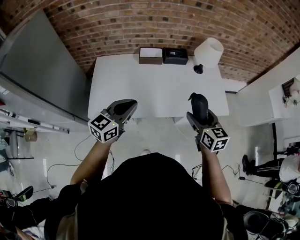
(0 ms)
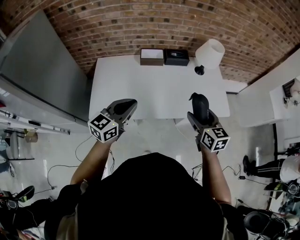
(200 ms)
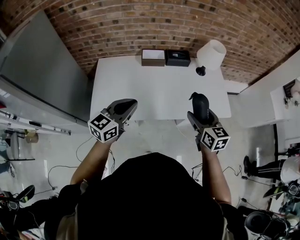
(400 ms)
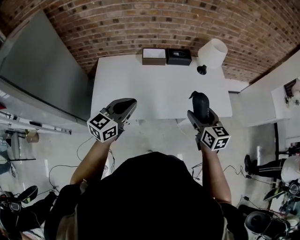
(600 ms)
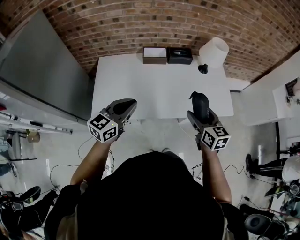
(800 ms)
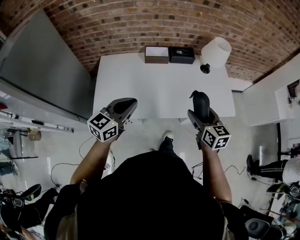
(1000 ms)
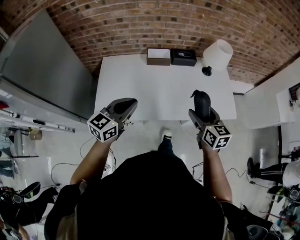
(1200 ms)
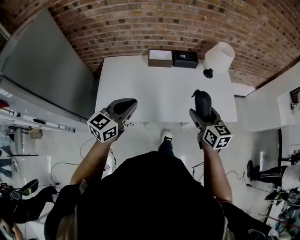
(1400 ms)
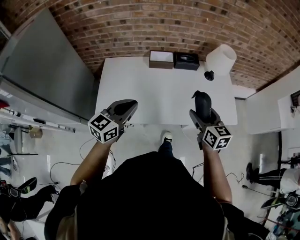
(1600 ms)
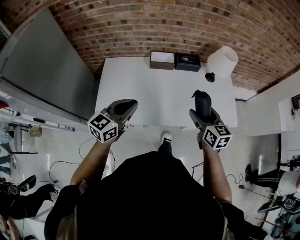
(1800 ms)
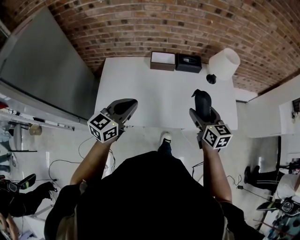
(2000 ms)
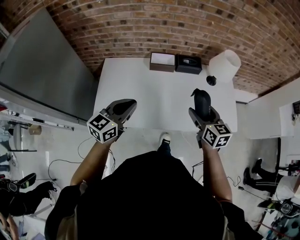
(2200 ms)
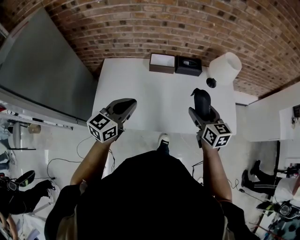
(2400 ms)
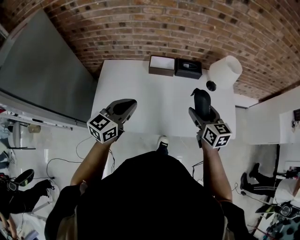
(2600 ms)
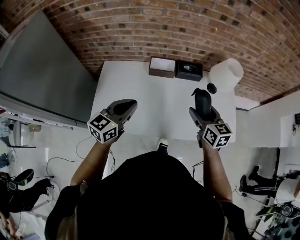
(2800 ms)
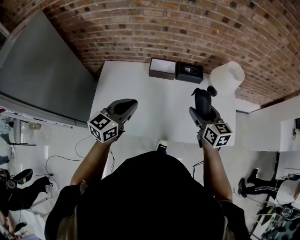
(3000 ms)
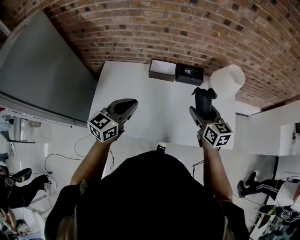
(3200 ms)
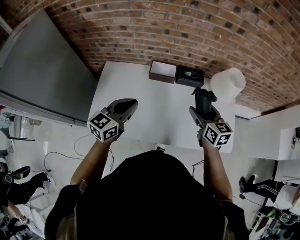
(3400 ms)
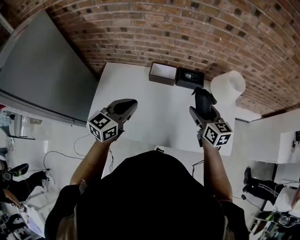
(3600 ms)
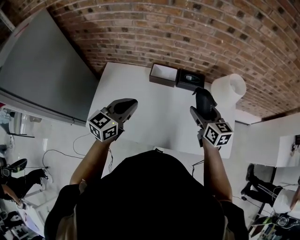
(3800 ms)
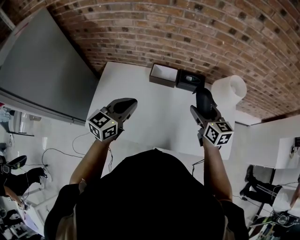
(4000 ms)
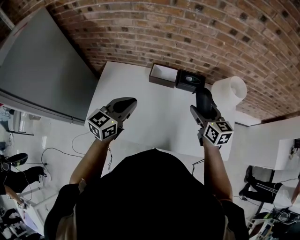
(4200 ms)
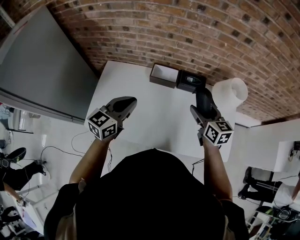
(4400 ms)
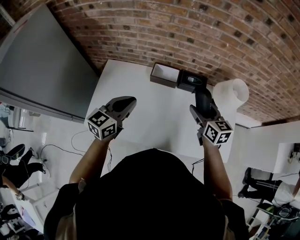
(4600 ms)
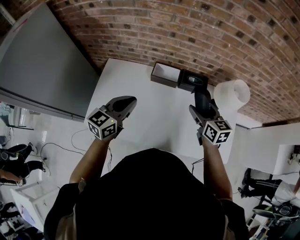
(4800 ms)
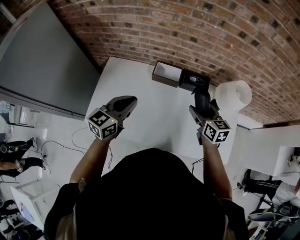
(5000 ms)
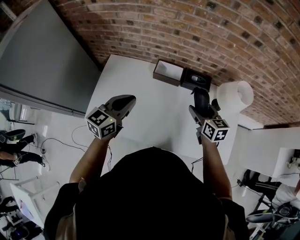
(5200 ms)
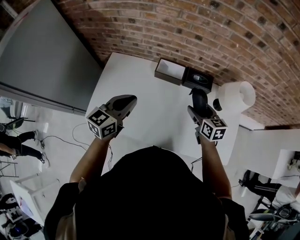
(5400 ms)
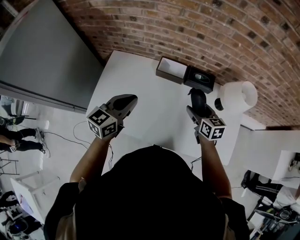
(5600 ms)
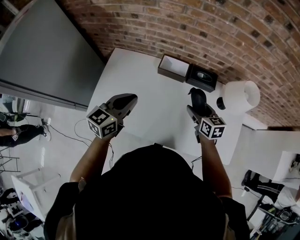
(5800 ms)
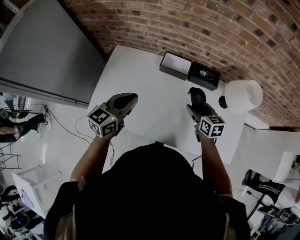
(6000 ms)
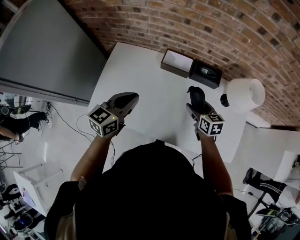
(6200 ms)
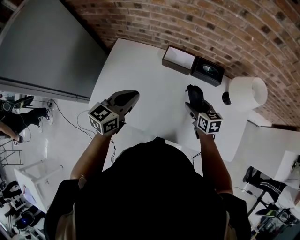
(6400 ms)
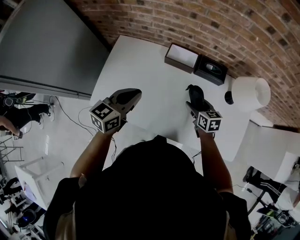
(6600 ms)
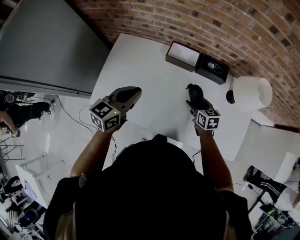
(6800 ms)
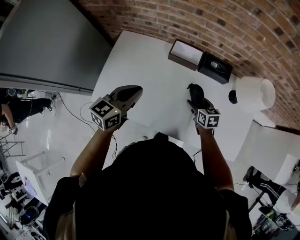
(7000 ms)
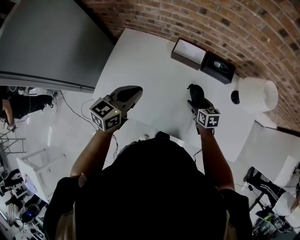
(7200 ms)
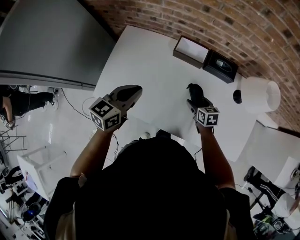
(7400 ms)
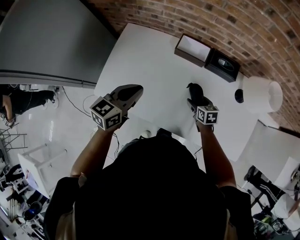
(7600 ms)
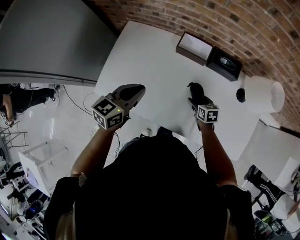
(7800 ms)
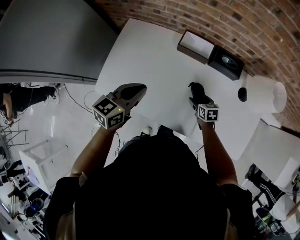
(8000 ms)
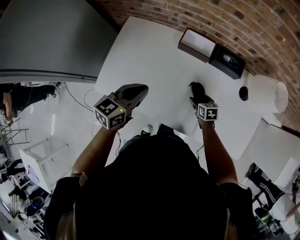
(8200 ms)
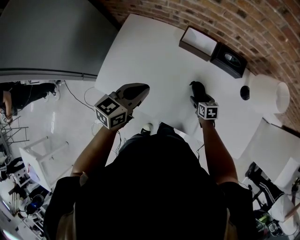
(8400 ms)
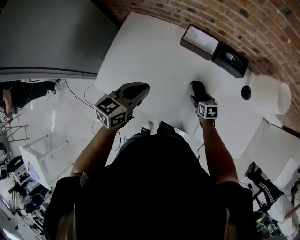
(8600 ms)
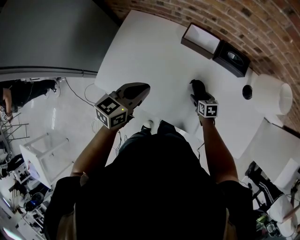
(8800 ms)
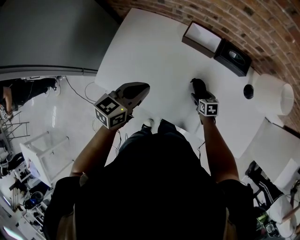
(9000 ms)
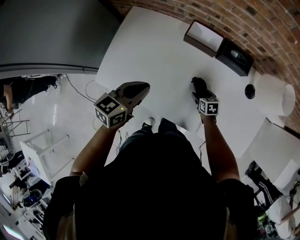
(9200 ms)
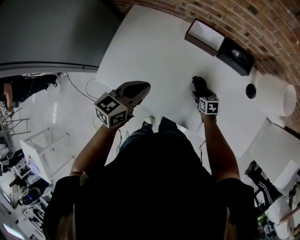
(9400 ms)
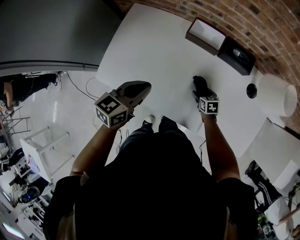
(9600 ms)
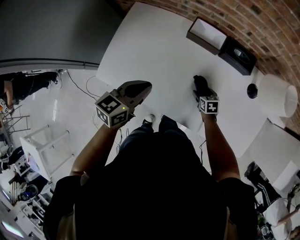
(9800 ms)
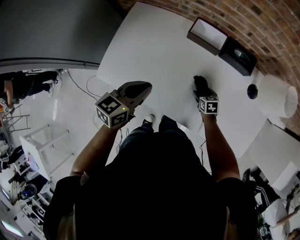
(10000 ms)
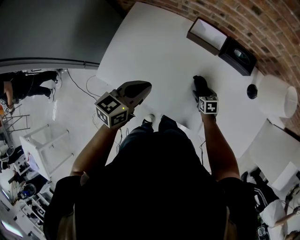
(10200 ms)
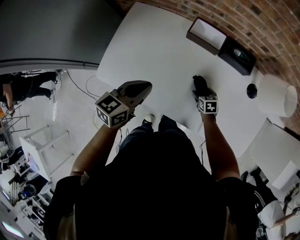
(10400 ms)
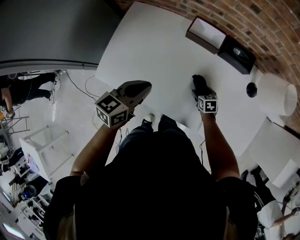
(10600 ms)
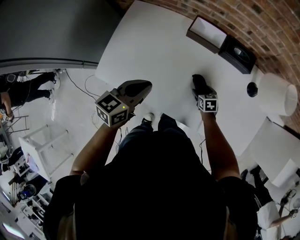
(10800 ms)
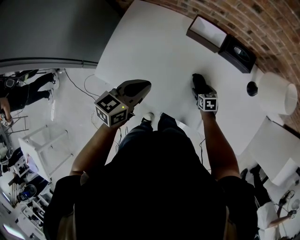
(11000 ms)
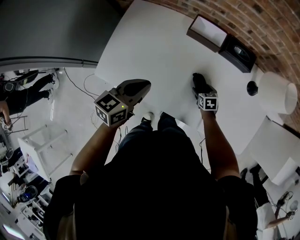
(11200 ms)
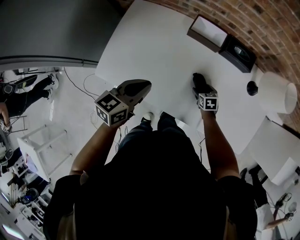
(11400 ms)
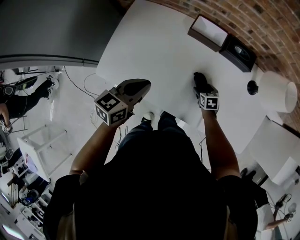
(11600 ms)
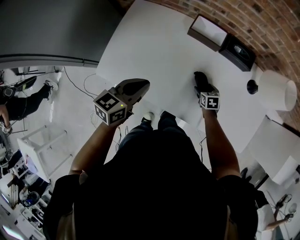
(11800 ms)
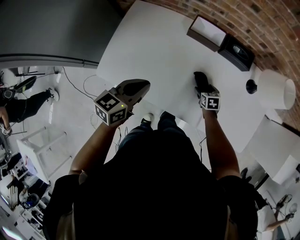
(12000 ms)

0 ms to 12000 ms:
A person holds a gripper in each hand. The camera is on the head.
0 ms to 1600 ms: The right gripper goes roughly 5 cm forward, while the left gripper ends up roughly 5 cm from where it was.
1600 ms to 3000 ms: The two grippers go about 15 cm forward.
3000 ms to 4400 ms: Both grippers move forward, roughly 10 cm.
4400 ms to 6000 ms: The right gripper heads downward, covering some 15 cm.
6000 ms to 7600 ms: The right gripper is displaced downward by roughly 15 cm, while the left gripper moves downward, roughly 5 cm.
7600 ms to 9000 ms: The right gripper goes about 10 cm downward.
9000 ms to 12000 ms: There are only small adjustments of the grippers.

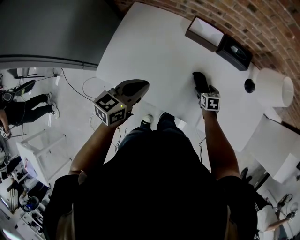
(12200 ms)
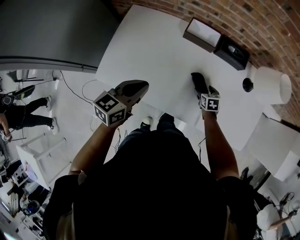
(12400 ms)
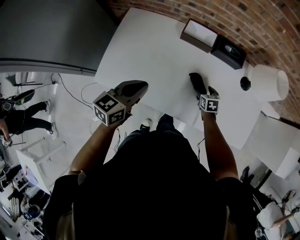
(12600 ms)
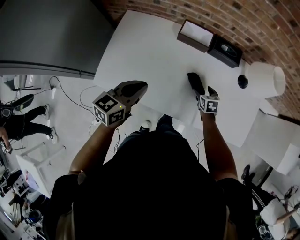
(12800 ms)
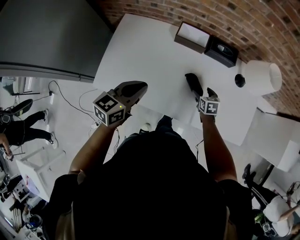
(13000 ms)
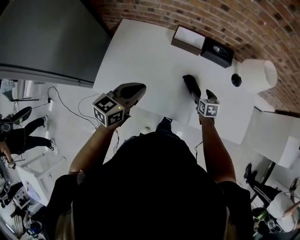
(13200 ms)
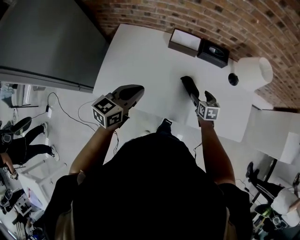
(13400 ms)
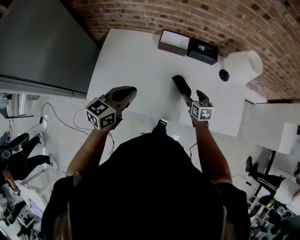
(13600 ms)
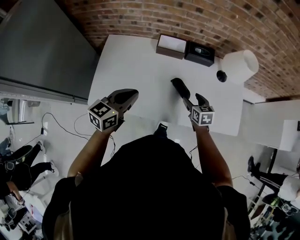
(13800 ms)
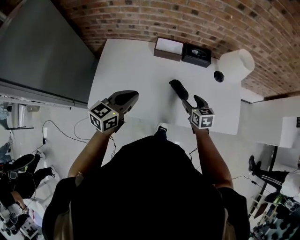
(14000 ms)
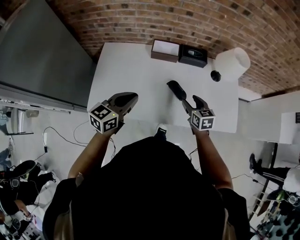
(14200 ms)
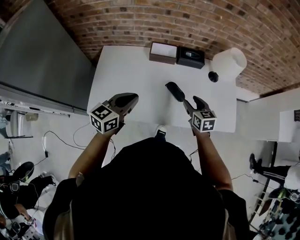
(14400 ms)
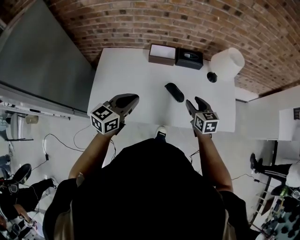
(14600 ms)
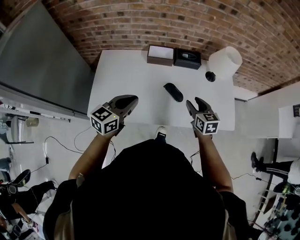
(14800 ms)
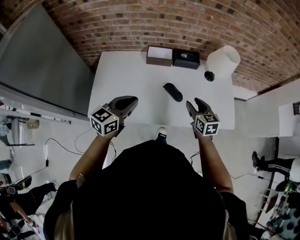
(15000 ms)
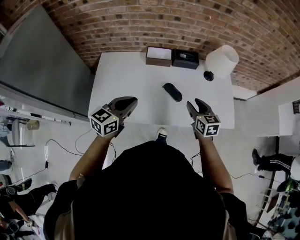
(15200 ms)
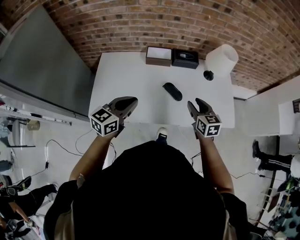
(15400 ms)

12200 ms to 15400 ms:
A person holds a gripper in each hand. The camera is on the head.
12200 ms to 13800 ms: The right gripper shifts approximately 20 cm upward and backward, and changes its angle by some 20 degrees; the left gripper is displaced upward by some 5 cm.
13800 ms to 15400 ms: The right gripper heads upward and backward, covering approximately 15 cm, while the left gripper is displaced backward by approximately 5 cm.

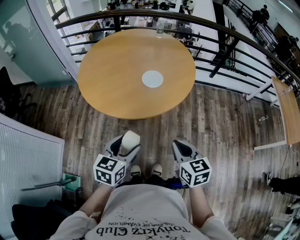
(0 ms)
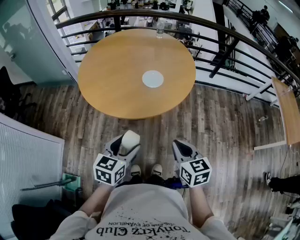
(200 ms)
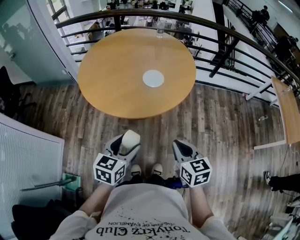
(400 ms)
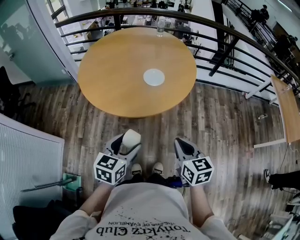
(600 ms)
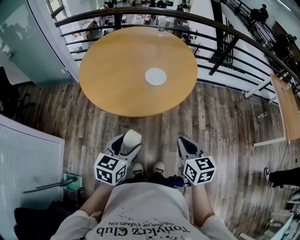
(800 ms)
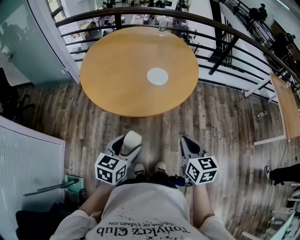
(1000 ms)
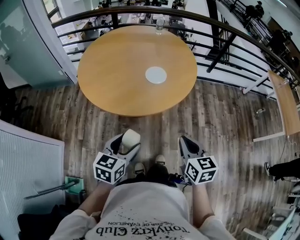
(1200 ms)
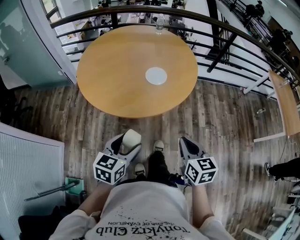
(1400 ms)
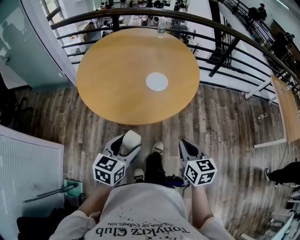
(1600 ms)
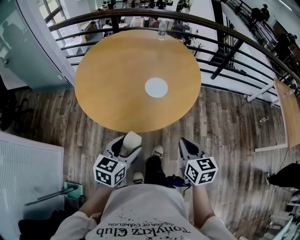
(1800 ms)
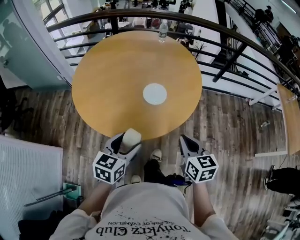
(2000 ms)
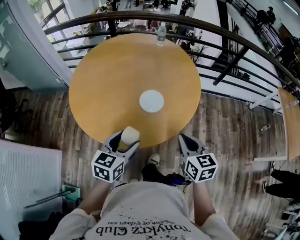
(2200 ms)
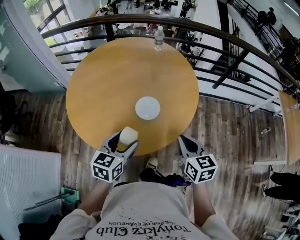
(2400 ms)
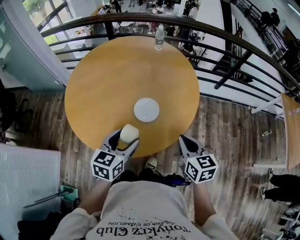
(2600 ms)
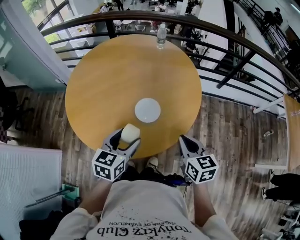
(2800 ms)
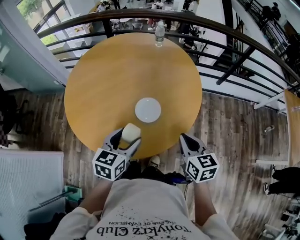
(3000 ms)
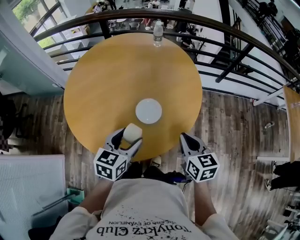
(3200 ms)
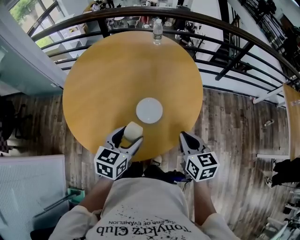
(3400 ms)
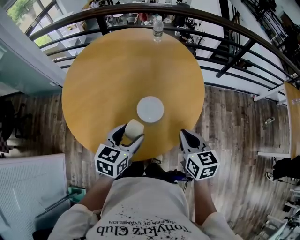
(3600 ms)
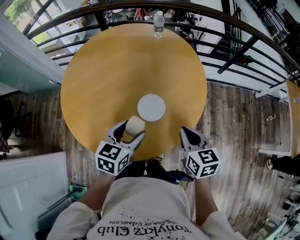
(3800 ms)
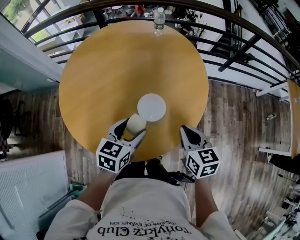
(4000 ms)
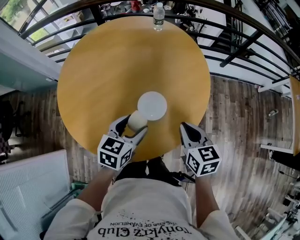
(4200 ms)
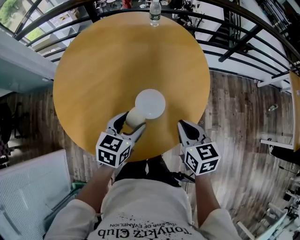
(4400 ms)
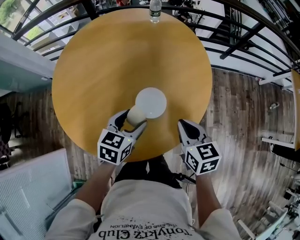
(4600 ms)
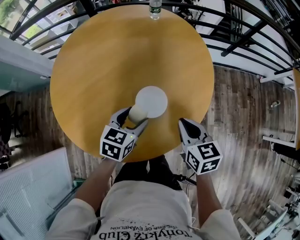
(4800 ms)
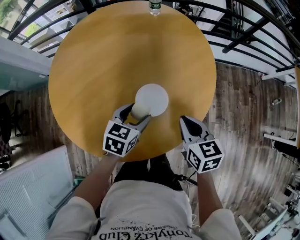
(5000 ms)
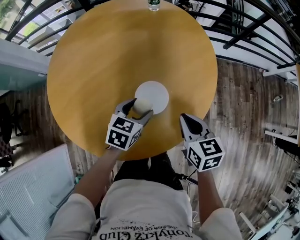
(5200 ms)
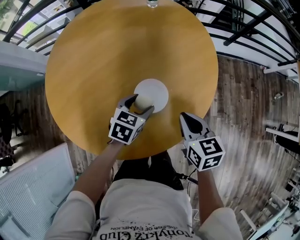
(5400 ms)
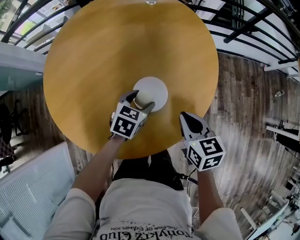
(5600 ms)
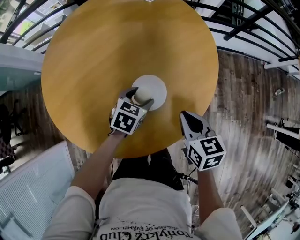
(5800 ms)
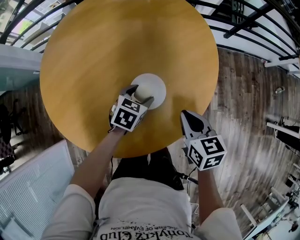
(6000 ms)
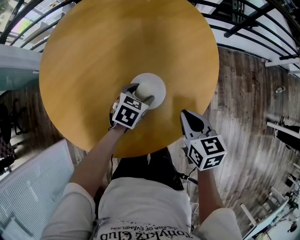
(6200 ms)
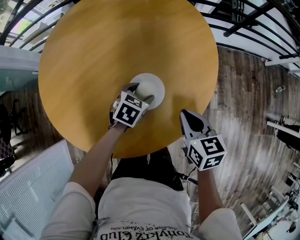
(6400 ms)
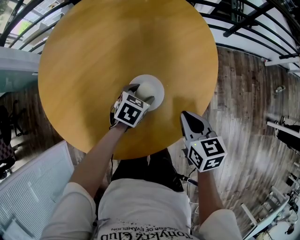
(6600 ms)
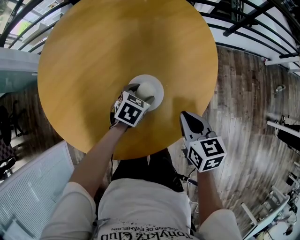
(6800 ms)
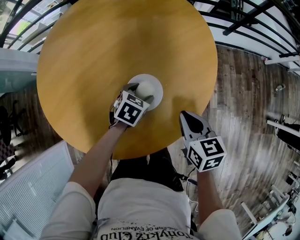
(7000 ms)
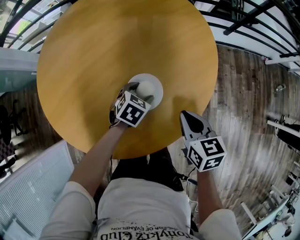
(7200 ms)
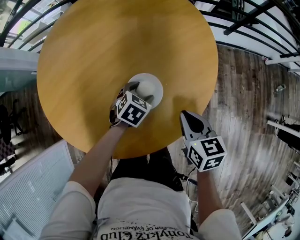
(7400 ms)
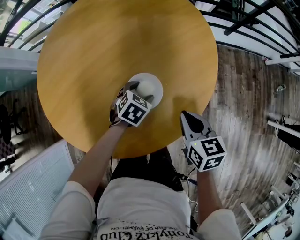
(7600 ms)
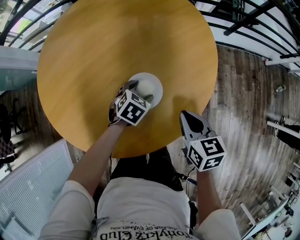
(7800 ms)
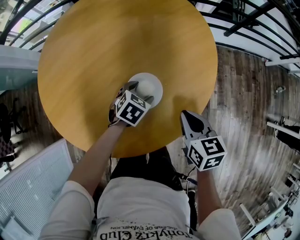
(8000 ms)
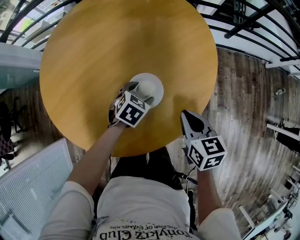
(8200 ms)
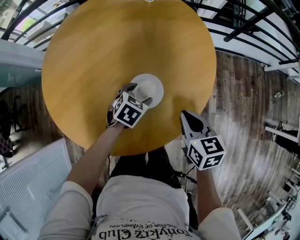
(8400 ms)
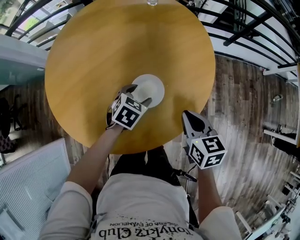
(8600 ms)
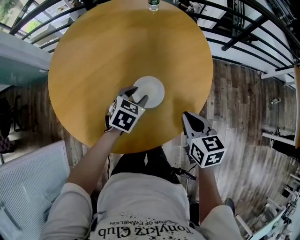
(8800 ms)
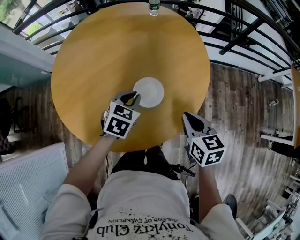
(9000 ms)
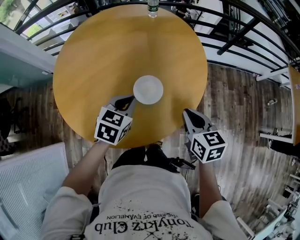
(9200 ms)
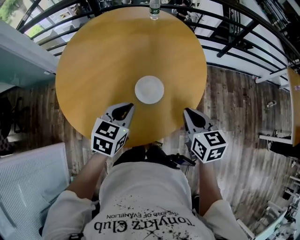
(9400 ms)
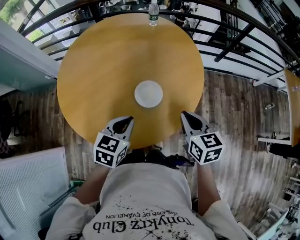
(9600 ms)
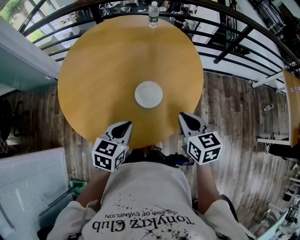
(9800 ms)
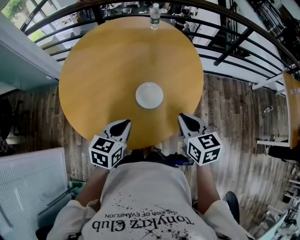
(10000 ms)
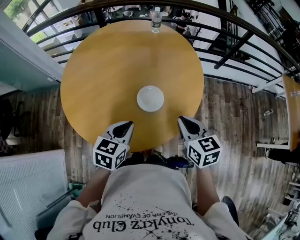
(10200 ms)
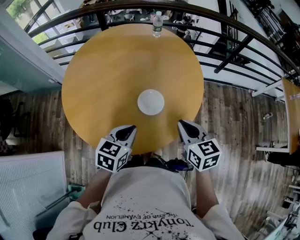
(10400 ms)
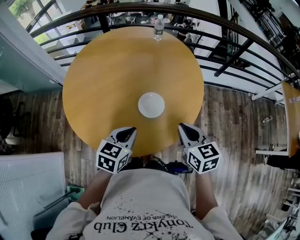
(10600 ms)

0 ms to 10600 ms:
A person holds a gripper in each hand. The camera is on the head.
0 ms to 1600 ms: The left gripper ends up some 5 cm from where it was.
1600 ms to 3000 ms: Both grippers travel together forward, roughly 25 cm.
3000 ms to 4600 ms: The grippers both shift forward and downward by some 15 cm.
4600 ms to 6000 ms: The right gripper is displaced downward by approximately 5 cm. Meanwhile the left gripper goes about 15 cm downward and forward.
6000 ms to 7600 ms: The grippers move only a little.
7600 ms to 9000 ms: The right gripper heads upward, covering some 10 cm. The left gripper is displaced upward by about 15 cm, and closes.
9000 ms to 10600 ms: The left gripper is displaced backward and upward by some 15 cm, while the right gripper travels upward and backward by roughly 10 cm.
